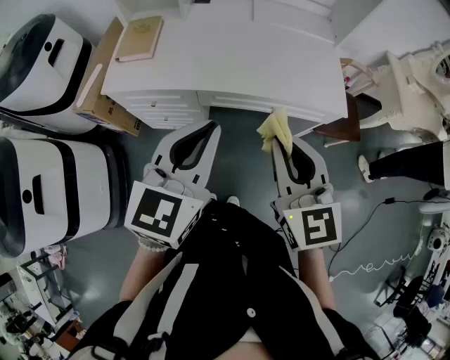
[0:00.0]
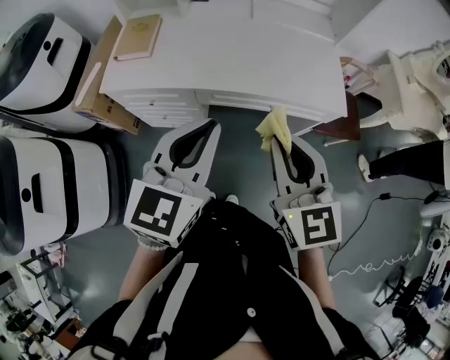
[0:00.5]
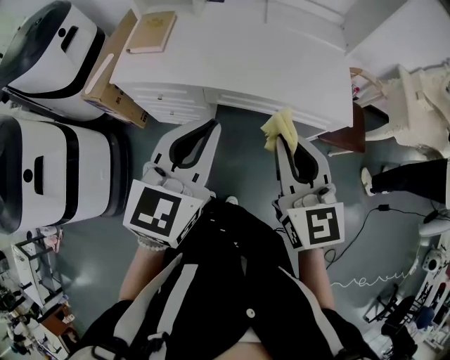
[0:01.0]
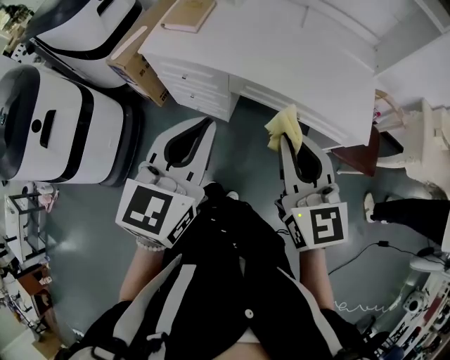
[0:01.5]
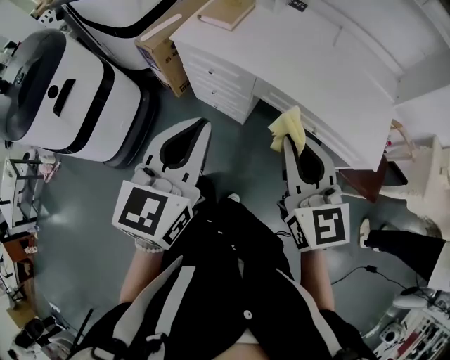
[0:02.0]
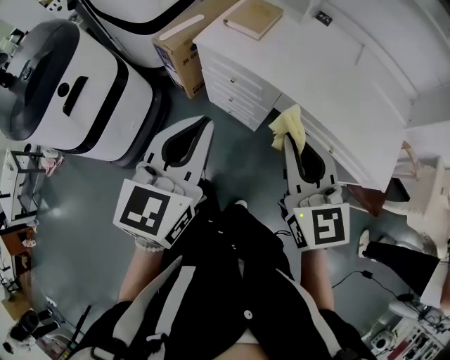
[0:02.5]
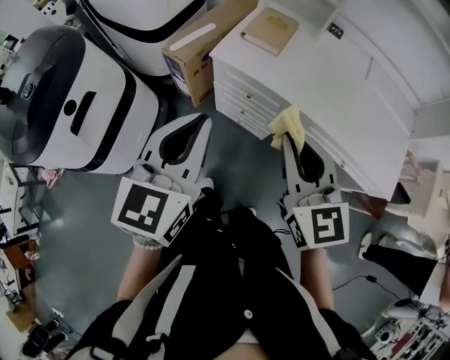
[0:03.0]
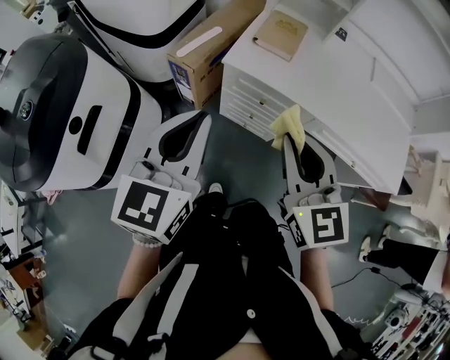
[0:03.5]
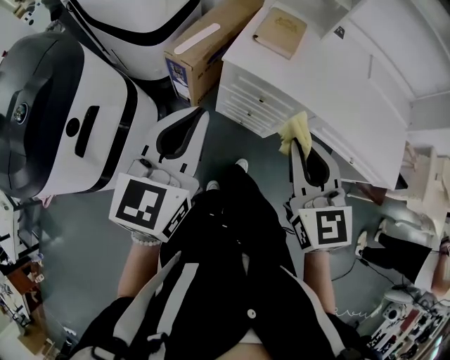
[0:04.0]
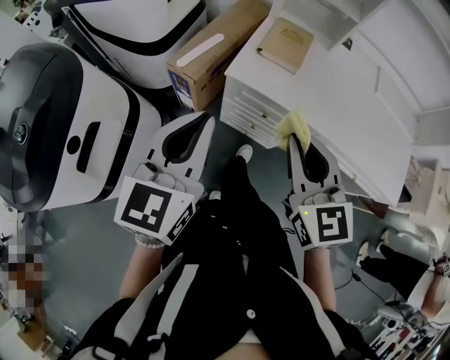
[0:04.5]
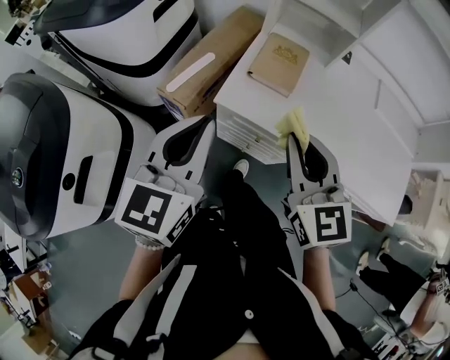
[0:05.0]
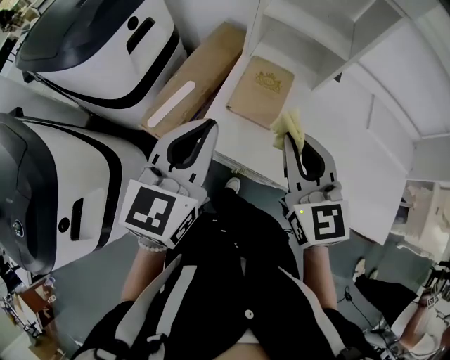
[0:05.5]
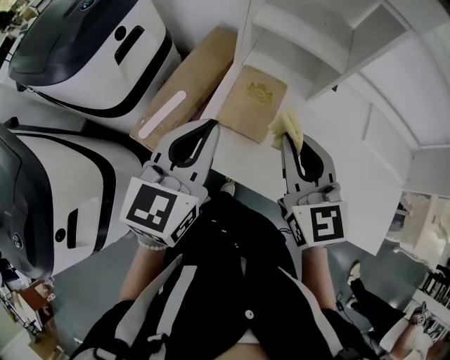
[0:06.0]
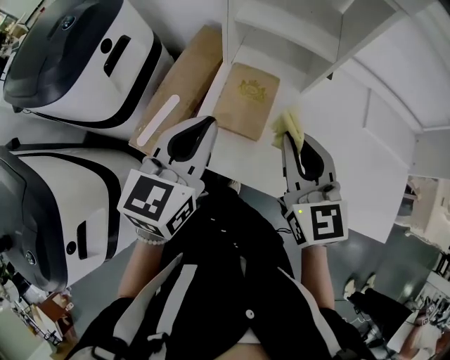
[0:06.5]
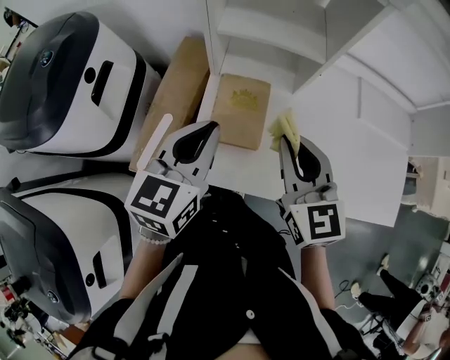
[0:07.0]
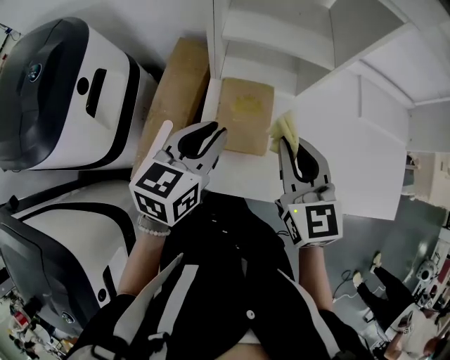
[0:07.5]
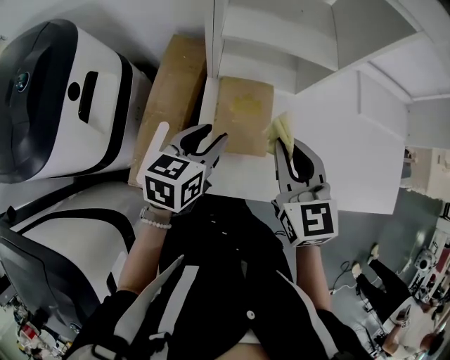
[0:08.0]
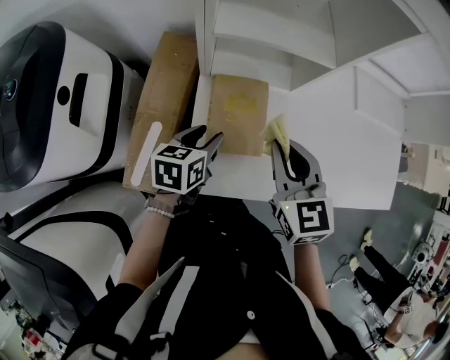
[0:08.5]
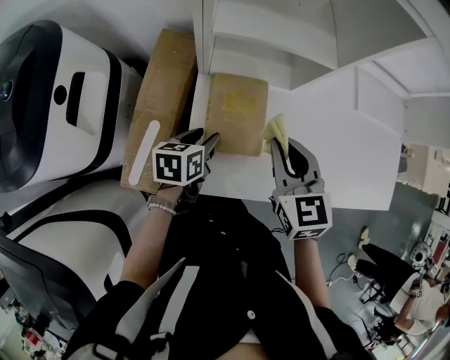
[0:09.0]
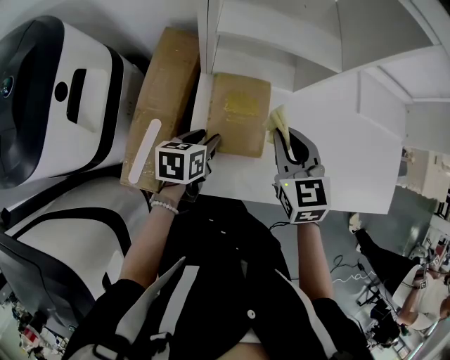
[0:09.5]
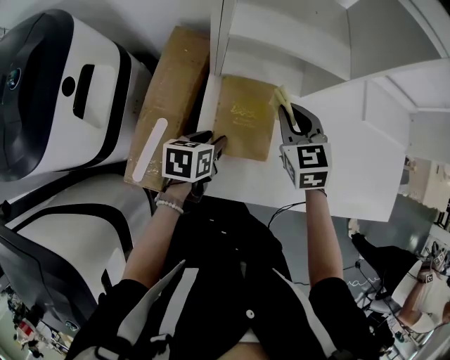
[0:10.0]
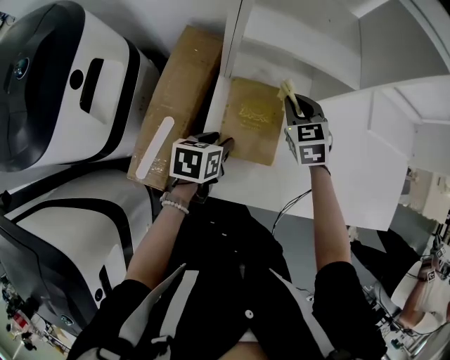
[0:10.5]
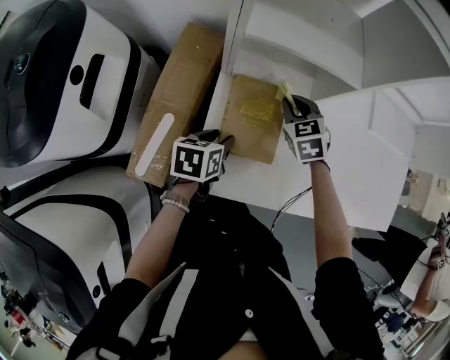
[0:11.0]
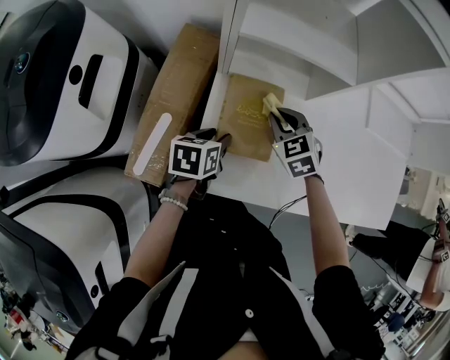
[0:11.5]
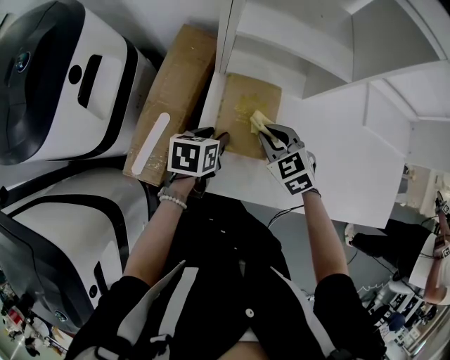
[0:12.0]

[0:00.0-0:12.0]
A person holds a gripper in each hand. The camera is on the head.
0:00.0 to 0:02.0: The right gripper shifts by roughly 5 cm, and swivels some 20 degrees; the left gripper shifts by roughly 10 cm, and turns by about 30 degrees.
0:02.0 to 0:04.0: Both grippers travel together to the left and forward, roughly 30 cm.
0:04.0 to 0:06.0: The grippers both shift forward by roughly 35 cm.
0:06.0 to 0:08.0: The right gripper heads forward and downward, covering some 10 cm, and swivels some 20 degrees. Meanwhile the left gripper moves downward and forward, roughly 20 cm, turns by roughly 40 degrees, and opens its fingers.
0:08.0 to 0:10.0: The left gripper moves downward, roughly 15 cm, and rotates some 20 degrees. The right gripper shifts about 15 cm forward and downward.
0:10.0 to 0:12.0: The right gripper goes about 10 cm downward and backward, and turns by approximately 20 degrees.

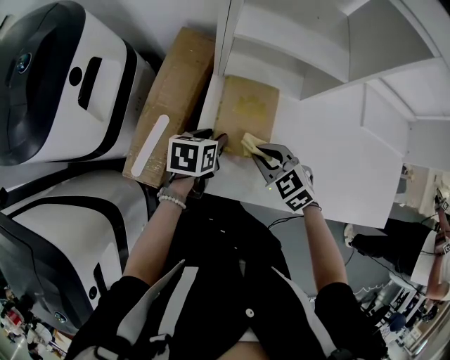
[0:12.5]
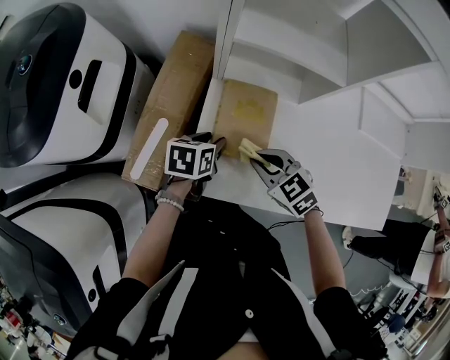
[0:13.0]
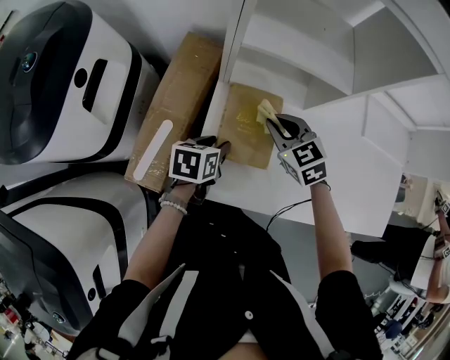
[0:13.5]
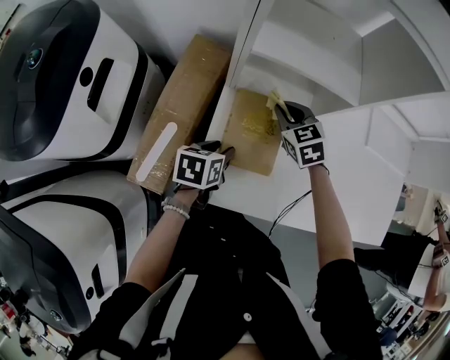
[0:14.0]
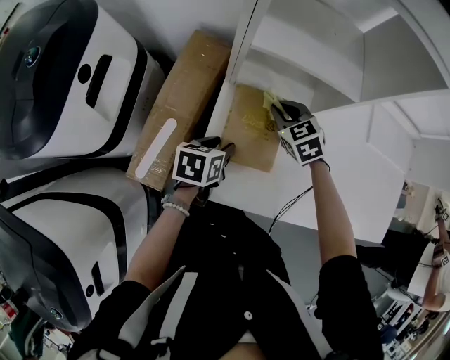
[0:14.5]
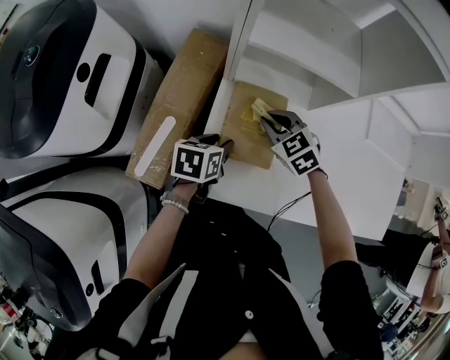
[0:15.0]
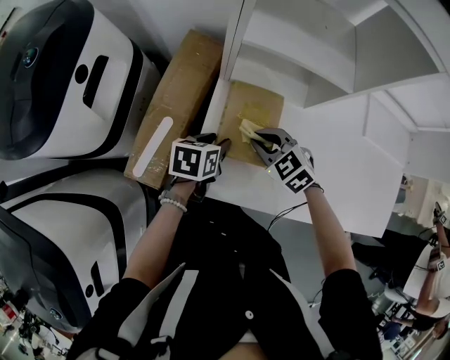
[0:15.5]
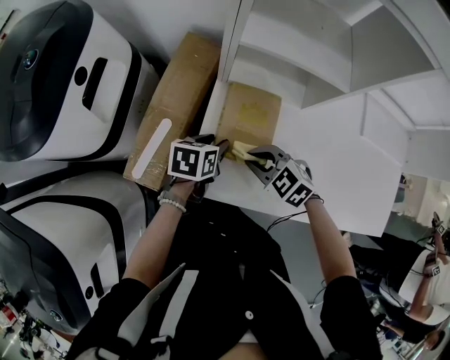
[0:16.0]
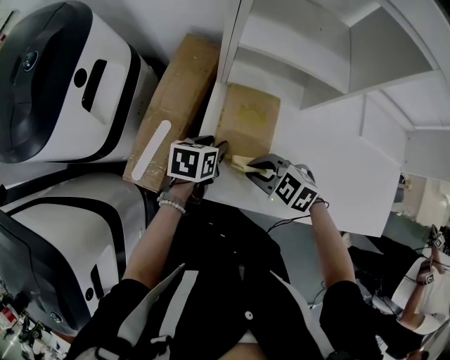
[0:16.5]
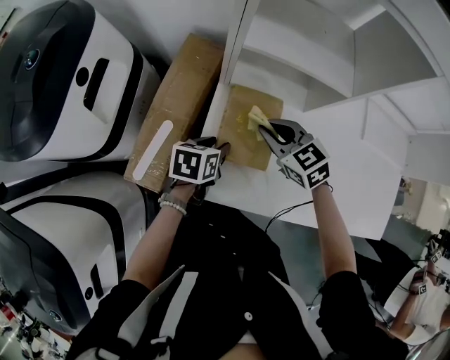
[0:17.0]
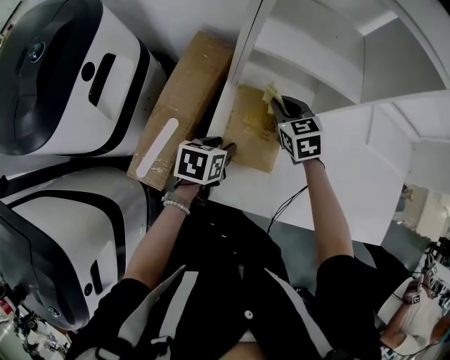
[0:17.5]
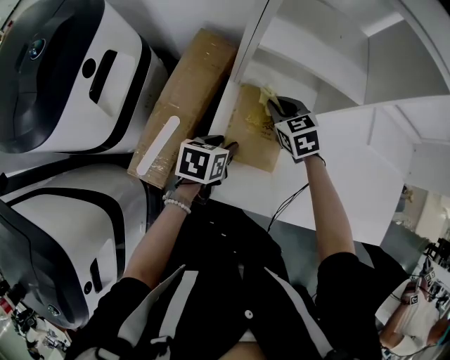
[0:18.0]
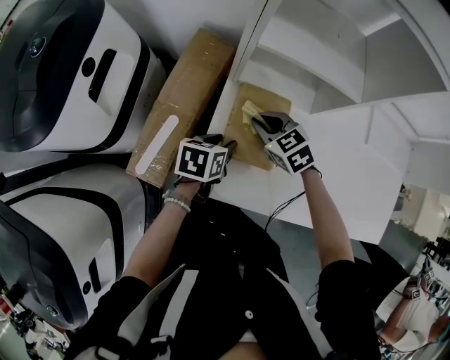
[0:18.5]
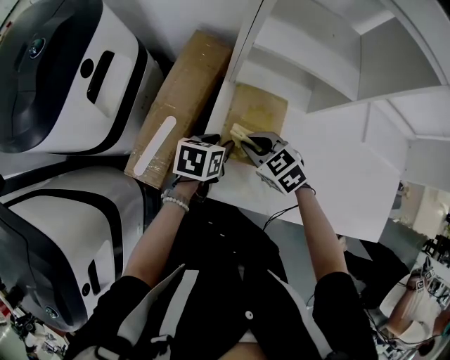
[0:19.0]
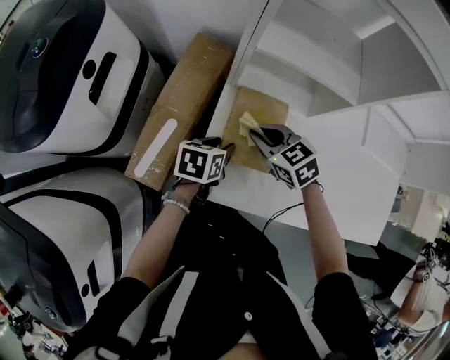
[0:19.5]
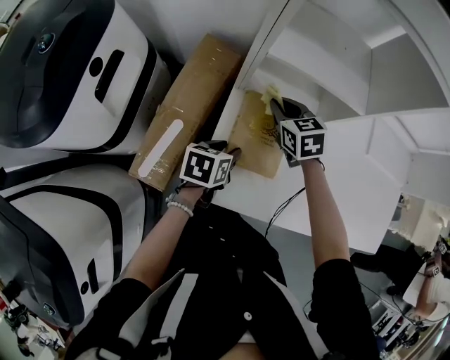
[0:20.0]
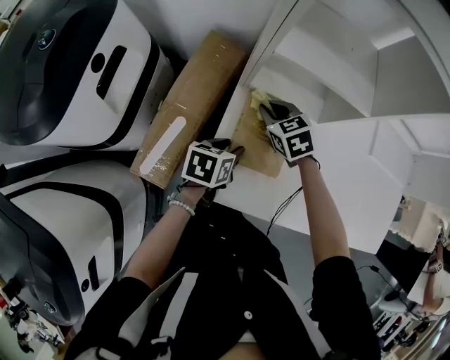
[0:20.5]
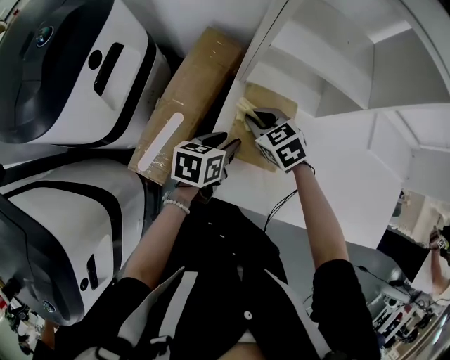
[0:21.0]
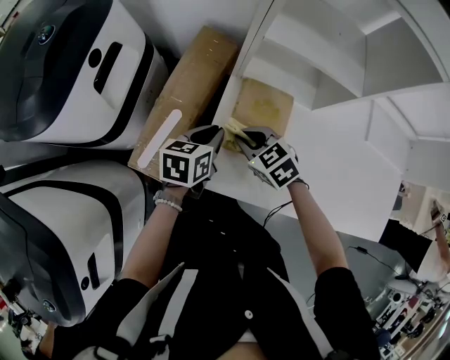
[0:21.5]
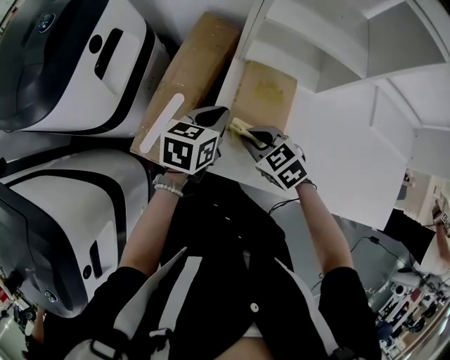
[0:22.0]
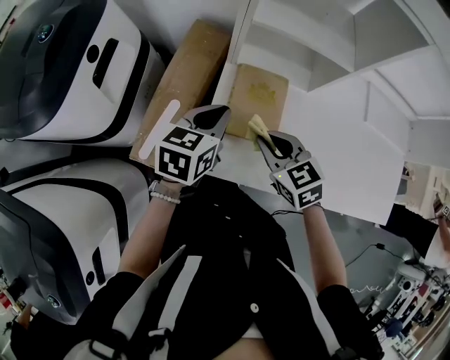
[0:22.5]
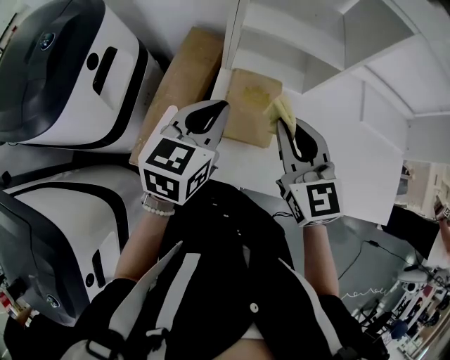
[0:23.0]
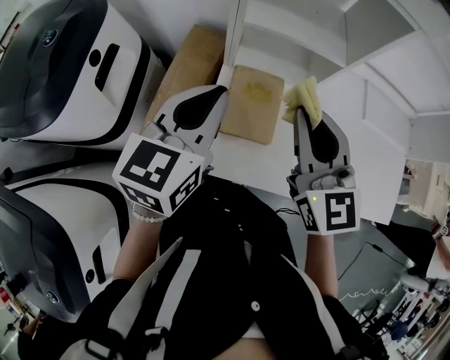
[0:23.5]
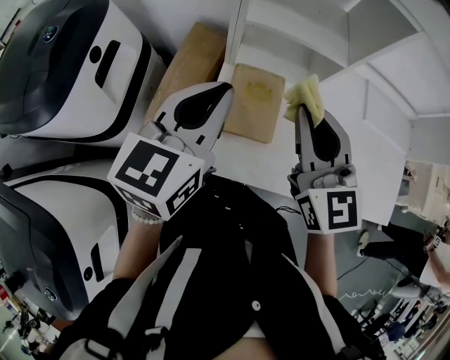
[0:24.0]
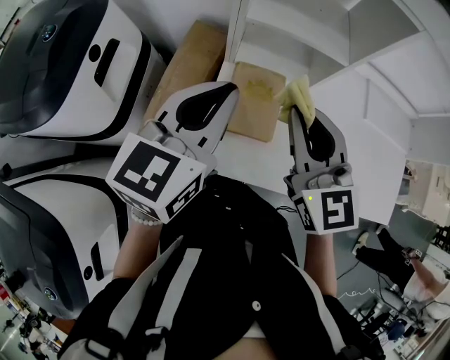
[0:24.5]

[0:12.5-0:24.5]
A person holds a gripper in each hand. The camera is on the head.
0:12.5 to 0:14.5: The right gripper heads forward, covering some 15 cm.
0:14.5 to 0:16.5: The right gripper moves approximately 20 cm, and turns by roughly 40 degrees.
0:16.5 to 0:18.5: The right gripper ends up approximately 15 cm from where it was, and rotates about 30 degrees.
0:18.5 to 0:20.5: The right gripper moves forward, some 5 cm.
0:20.5 to 0:22.5: The right gripper heads backward, covering about 20 cm; the left gripper is displaced upward by some 10 cm, rotates about 20 degrees, and closes its fingers.
0:22.5 to 0:24.5: Both grippers move upward, about 20 cm. The left gripper rotates approximately 20 degrees. The right gripper tilts its fingers about 30 degrees upward.

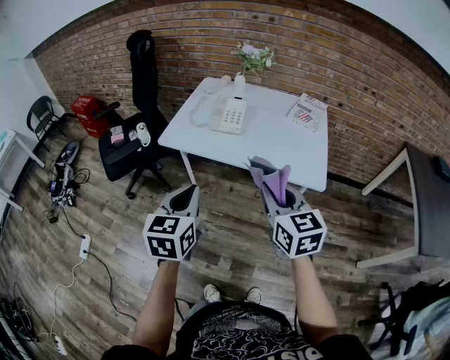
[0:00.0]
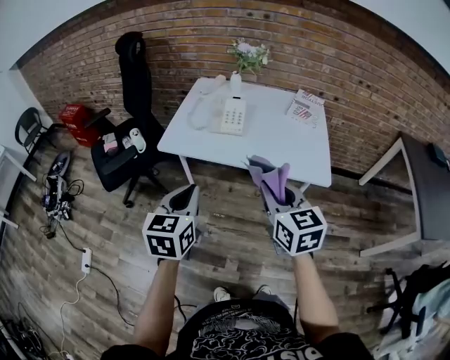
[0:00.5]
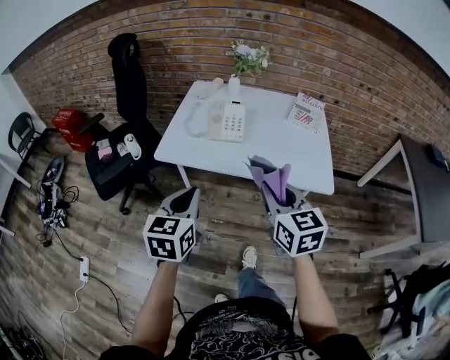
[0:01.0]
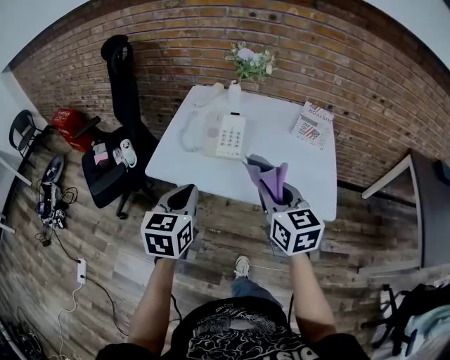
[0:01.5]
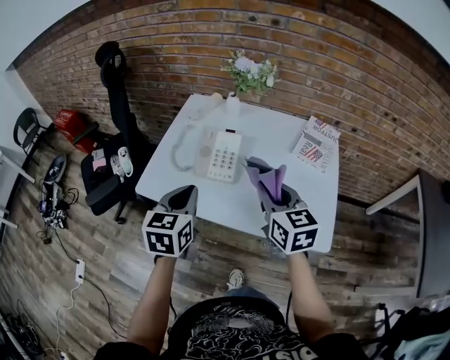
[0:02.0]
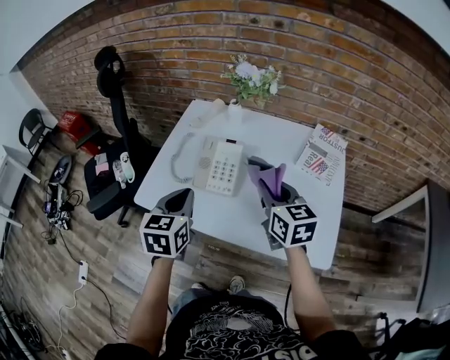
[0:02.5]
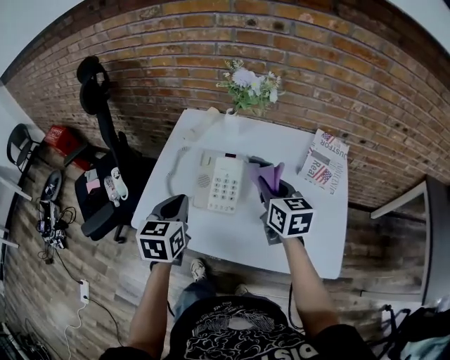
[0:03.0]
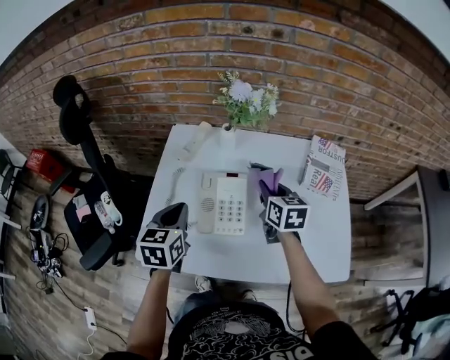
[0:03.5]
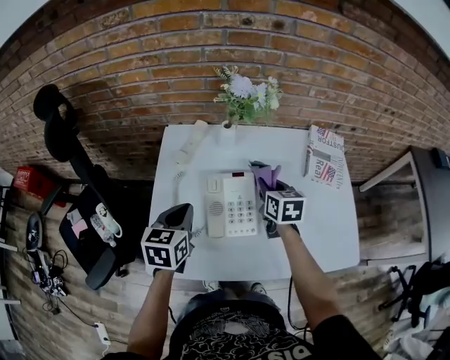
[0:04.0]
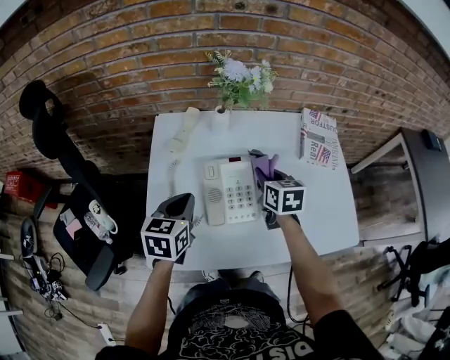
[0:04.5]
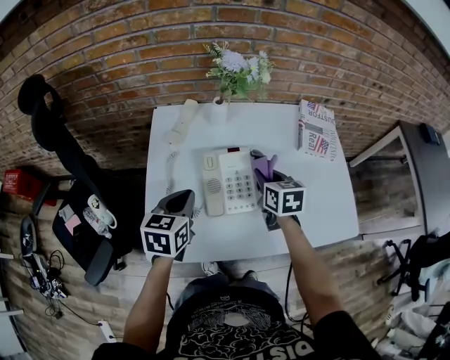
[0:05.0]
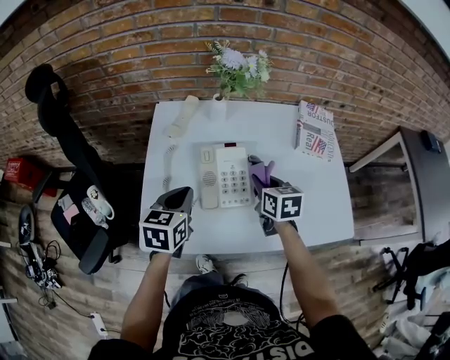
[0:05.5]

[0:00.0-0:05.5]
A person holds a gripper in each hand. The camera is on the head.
0:00.0 to 0:02.0: The grippers both shift forward by approximately 30 cm.
0:02.0 to 0:03.5: The right gripper travels forward and downward by roughly 25 cm, and swivels roughly 20 degrees; the left gripper goes roughly 20 cm forward.
0:03.5 to 0:05.5: The right gripper shifts about 10 cm backward and downward.
